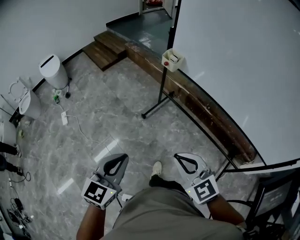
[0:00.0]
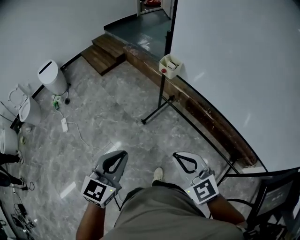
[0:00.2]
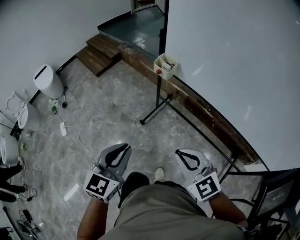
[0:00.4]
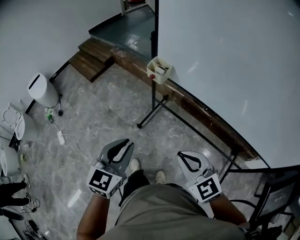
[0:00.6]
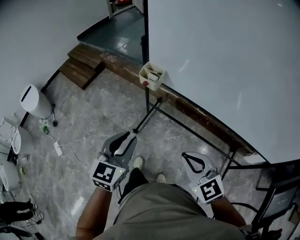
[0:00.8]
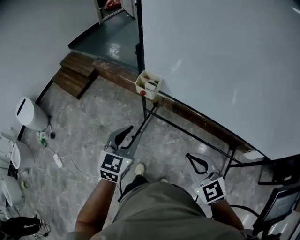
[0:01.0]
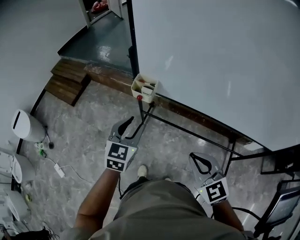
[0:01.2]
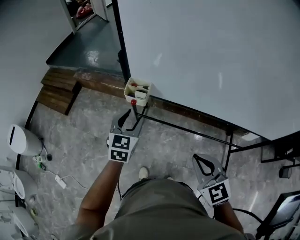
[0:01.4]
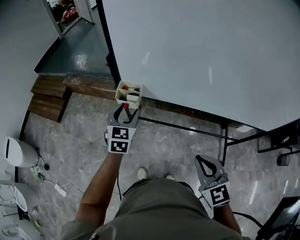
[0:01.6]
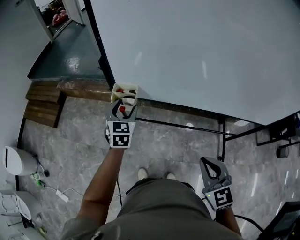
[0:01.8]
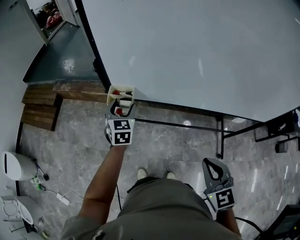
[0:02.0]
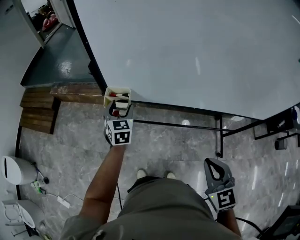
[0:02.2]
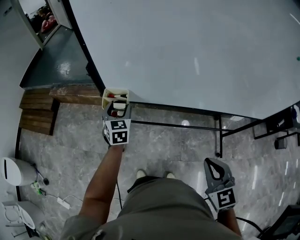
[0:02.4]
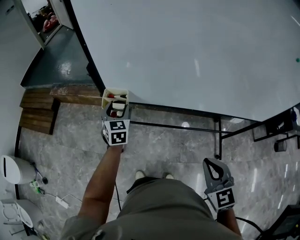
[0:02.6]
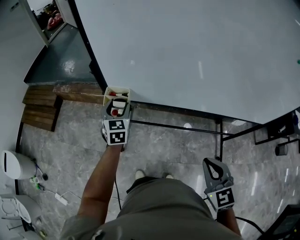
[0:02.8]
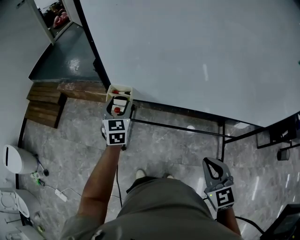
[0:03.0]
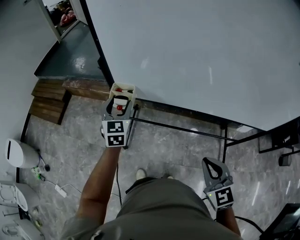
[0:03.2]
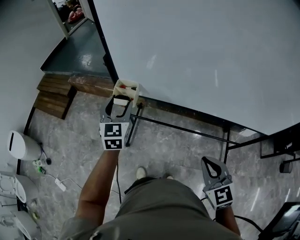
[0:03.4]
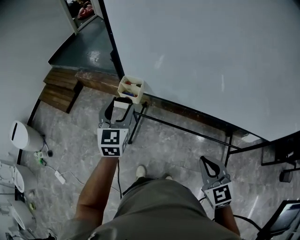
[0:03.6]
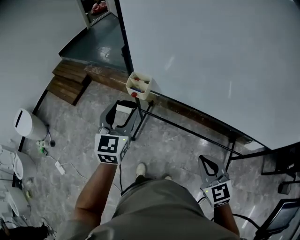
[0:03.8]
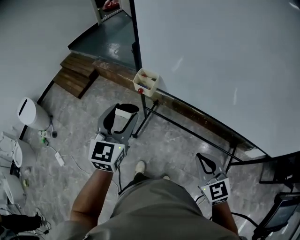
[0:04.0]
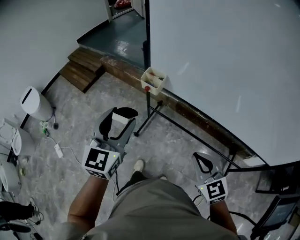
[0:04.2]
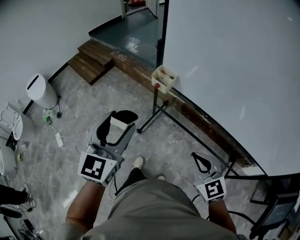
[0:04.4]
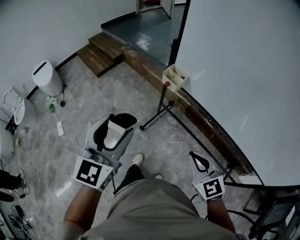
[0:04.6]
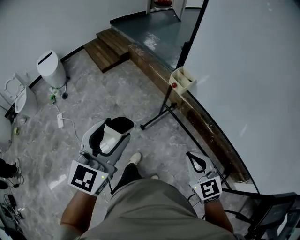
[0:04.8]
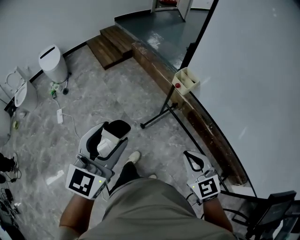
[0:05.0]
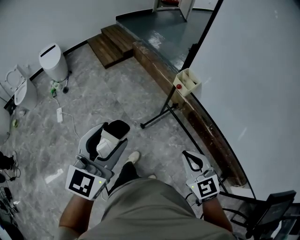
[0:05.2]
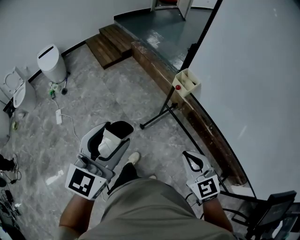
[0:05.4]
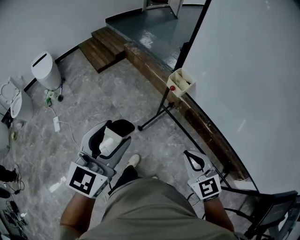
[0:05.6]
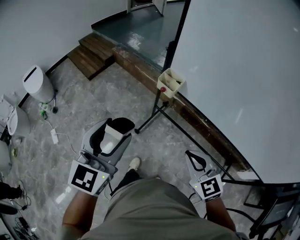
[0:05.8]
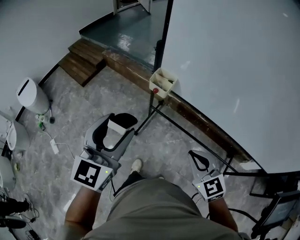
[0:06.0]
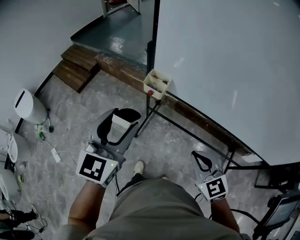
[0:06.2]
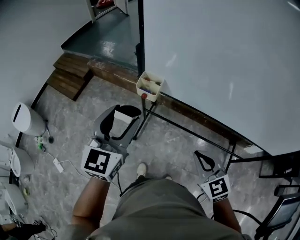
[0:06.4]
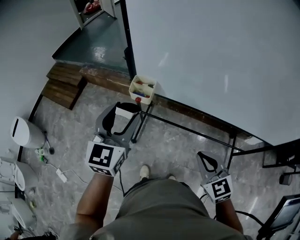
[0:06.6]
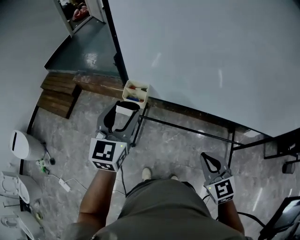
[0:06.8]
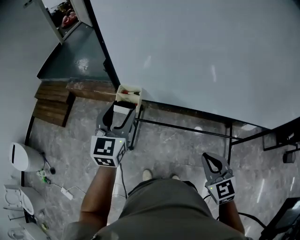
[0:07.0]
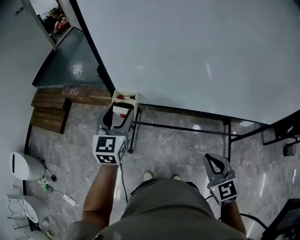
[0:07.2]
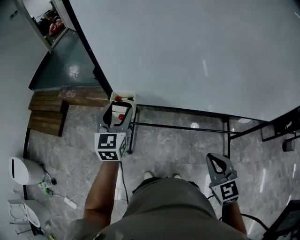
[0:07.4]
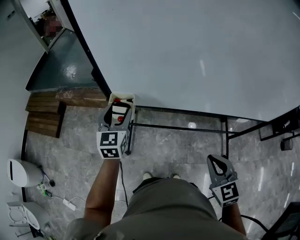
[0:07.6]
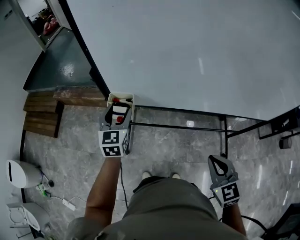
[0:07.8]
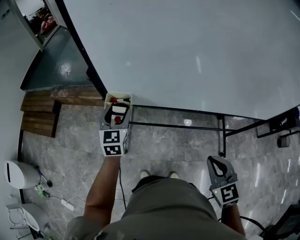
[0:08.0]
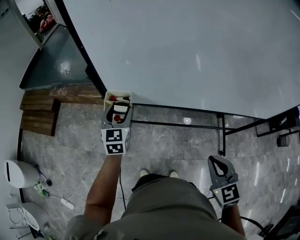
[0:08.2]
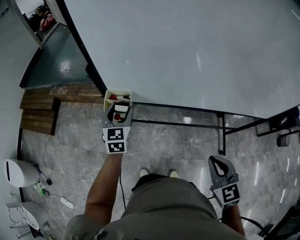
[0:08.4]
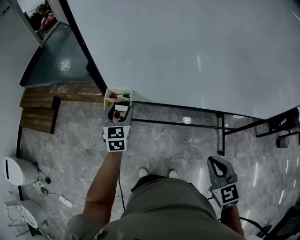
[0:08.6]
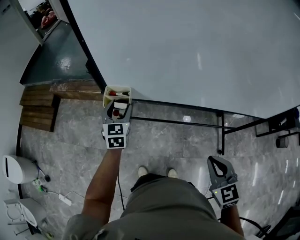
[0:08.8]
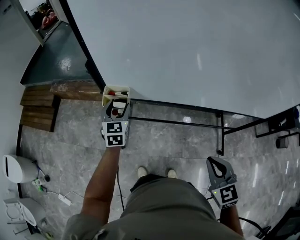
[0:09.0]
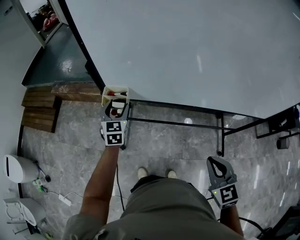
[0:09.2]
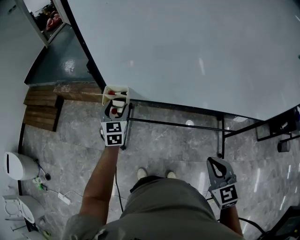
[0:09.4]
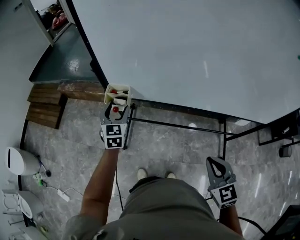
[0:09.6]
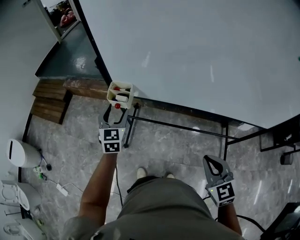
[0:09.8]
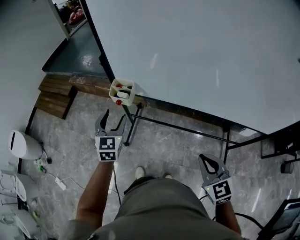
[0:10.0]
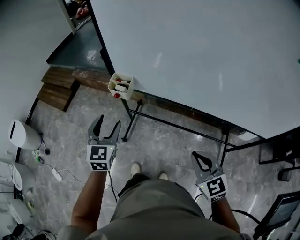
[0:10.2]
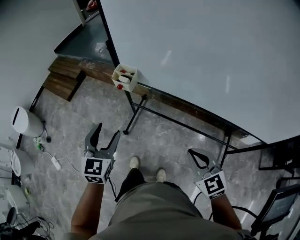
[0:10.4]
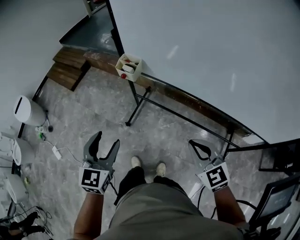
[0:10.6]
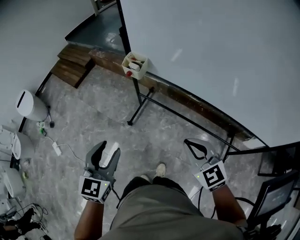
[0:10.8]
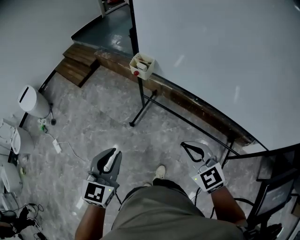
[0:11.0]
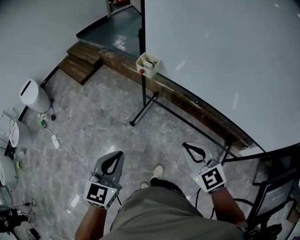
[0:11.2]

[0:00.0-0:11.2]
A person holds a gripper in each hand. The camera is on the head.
0:00.0 to 0:01.6: The right gripper changes place by approximately 25 cm, and rotates approximately 50 degrees, while the left gripper ends up about 60 cm from where it was, rotates approximately 20 degrees, and opens up.
0:01.6 to 0:03.2: The right gripper shifts approximately 5 cm to the right, while the left gripper goes downward and returns, some 5 cm each way.
0:03.2 to 0:04.8: The left gripper ends up approximately 40 cm from where it was, and changes its angle by roughly 20 degrees; the right gripper changes place by about 15 cm, and swivels about 40 degrees.
0:04.8 to 0:06.4: The right gripper shifts by about 10 cm, and changes its angle by approximately 20 degrees. The left gripper ends up some 25 cm from where it was, and changes its angle by roughly 20 degrees.
0:06.4 to 0:08.0: The left gripper shifts approximately 25 cm forward and downward; the right gripper moves to the right, some 10 cm, and rotates roughly 30 degrees.
0:08.0 to 0:09.6: The right gripper changes place by approximately 5 cm.
0:09.6 to 0:11.2: The right gripper shifts some 10 cm backward and to the left, and rotates approximately 40 degrees. Meanwhile the left gripper goes approximately 50 cm backward, and closes.

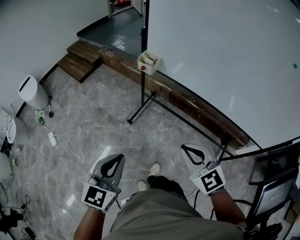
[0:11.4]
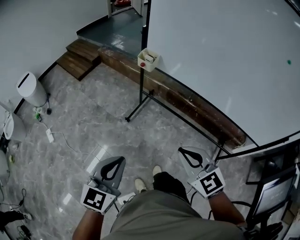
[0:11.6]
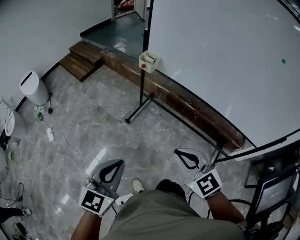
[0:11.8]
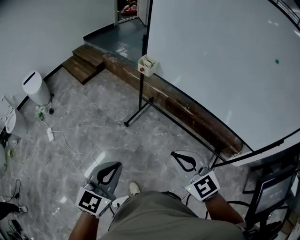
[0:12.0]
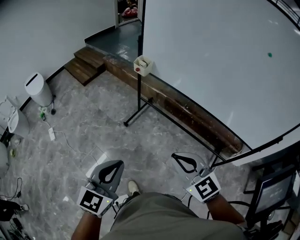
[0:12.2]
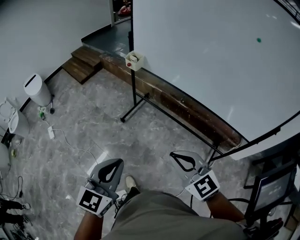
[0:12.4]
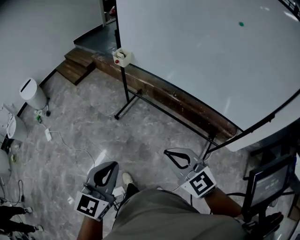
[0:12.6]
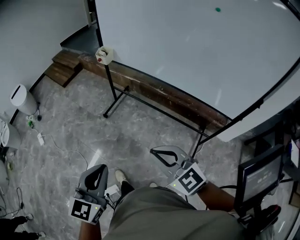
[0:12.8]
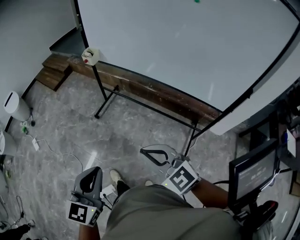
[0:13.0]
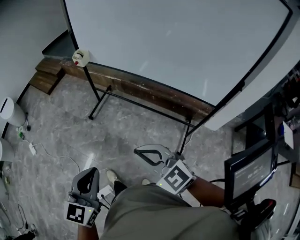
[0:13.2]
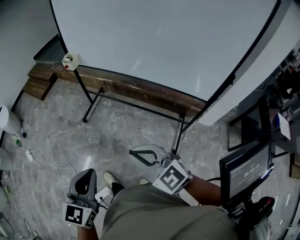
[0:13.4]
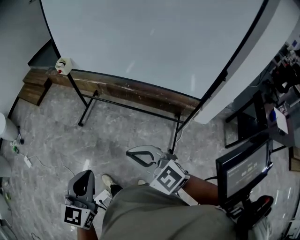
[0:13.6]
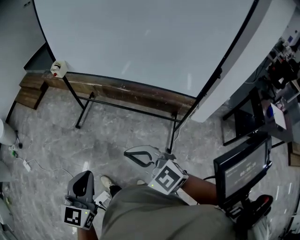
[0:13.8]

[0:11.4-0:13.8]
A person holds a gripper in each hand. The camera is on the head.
0:11.4 to 0:12.6: Both grippers travel together backward and to the right, some 25 cm.
0:12.6 to 0:13.8: The grippers both shift to the right and backward by approximately 15 cm.

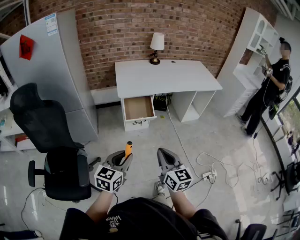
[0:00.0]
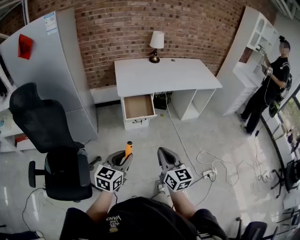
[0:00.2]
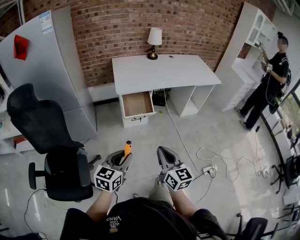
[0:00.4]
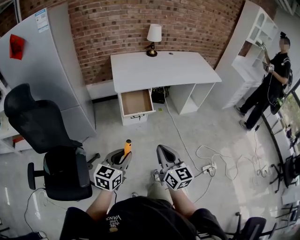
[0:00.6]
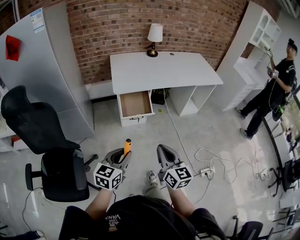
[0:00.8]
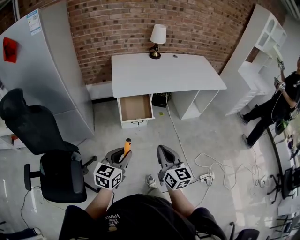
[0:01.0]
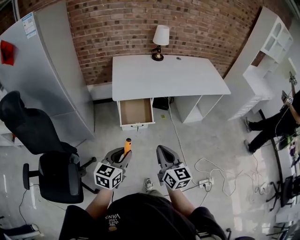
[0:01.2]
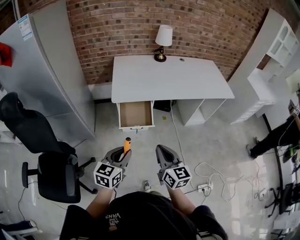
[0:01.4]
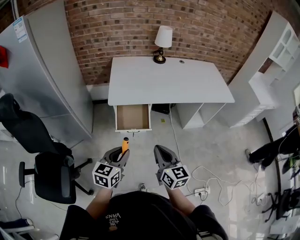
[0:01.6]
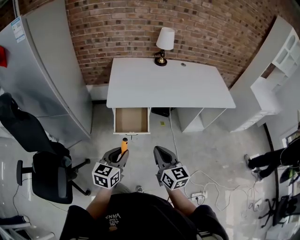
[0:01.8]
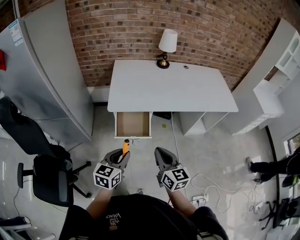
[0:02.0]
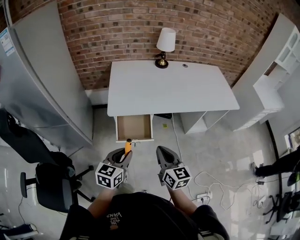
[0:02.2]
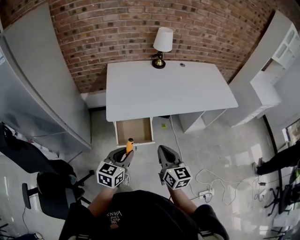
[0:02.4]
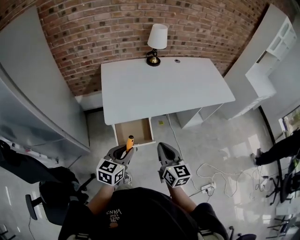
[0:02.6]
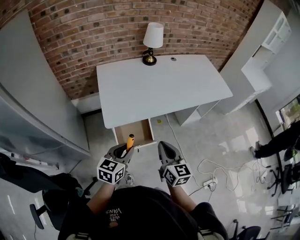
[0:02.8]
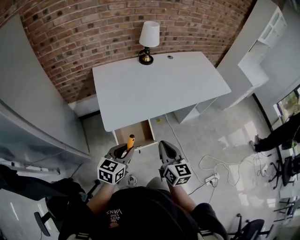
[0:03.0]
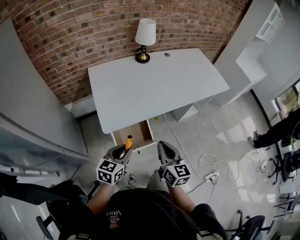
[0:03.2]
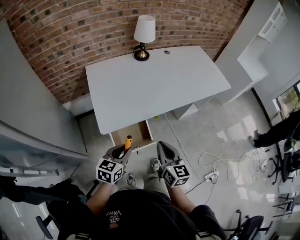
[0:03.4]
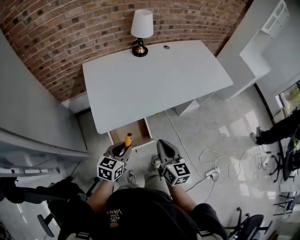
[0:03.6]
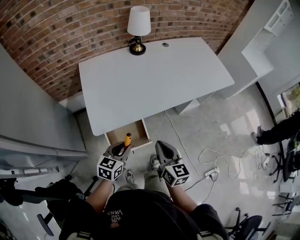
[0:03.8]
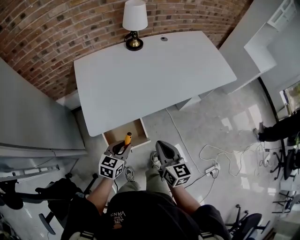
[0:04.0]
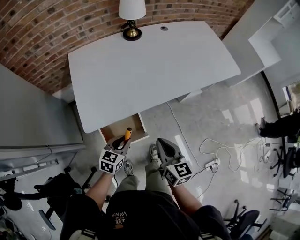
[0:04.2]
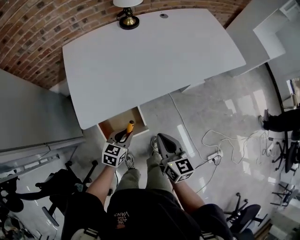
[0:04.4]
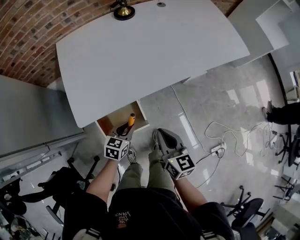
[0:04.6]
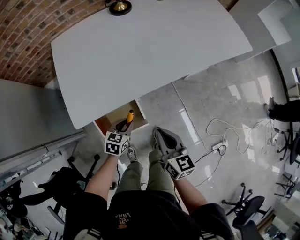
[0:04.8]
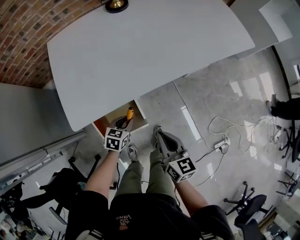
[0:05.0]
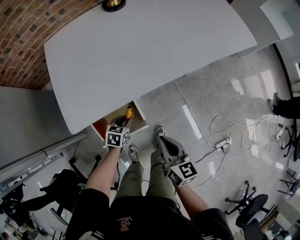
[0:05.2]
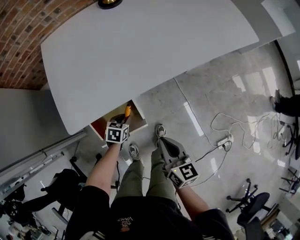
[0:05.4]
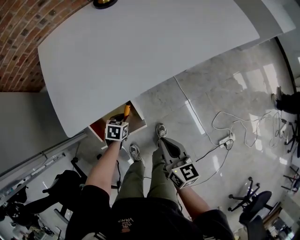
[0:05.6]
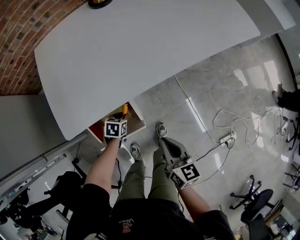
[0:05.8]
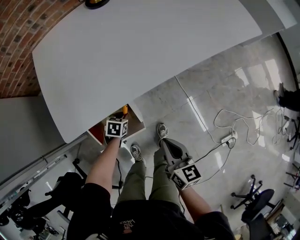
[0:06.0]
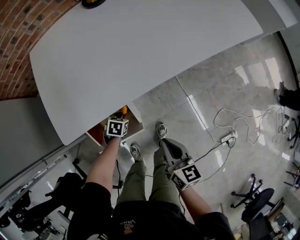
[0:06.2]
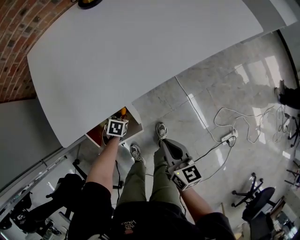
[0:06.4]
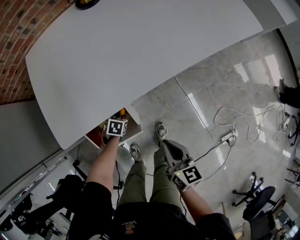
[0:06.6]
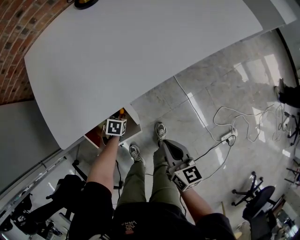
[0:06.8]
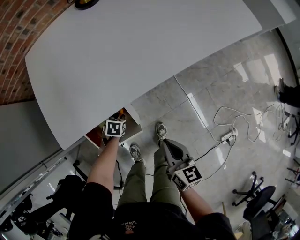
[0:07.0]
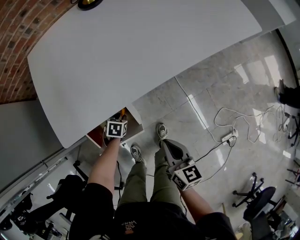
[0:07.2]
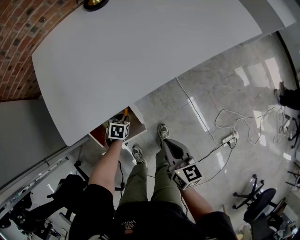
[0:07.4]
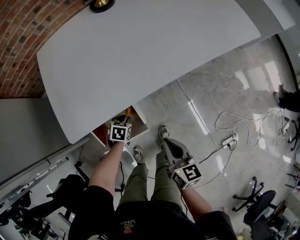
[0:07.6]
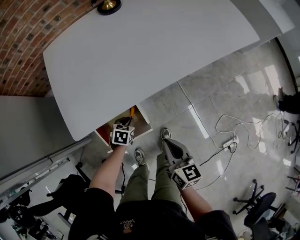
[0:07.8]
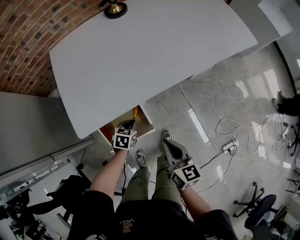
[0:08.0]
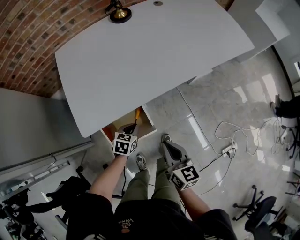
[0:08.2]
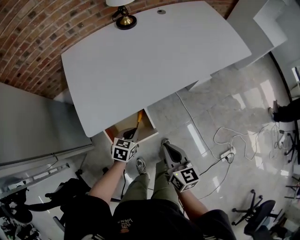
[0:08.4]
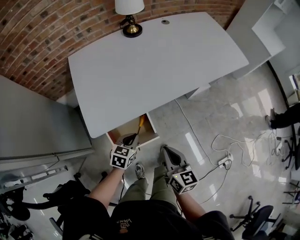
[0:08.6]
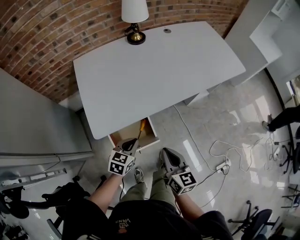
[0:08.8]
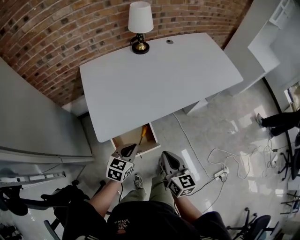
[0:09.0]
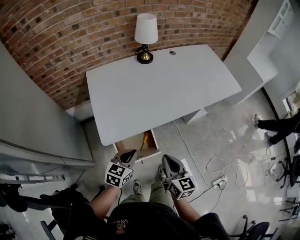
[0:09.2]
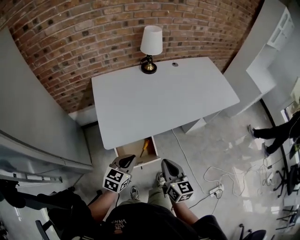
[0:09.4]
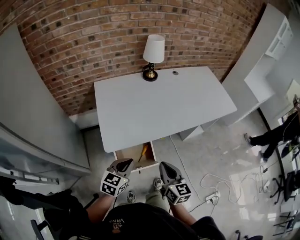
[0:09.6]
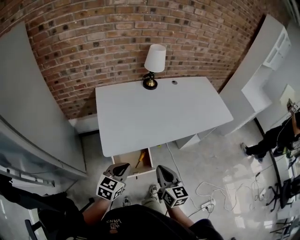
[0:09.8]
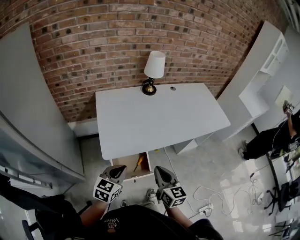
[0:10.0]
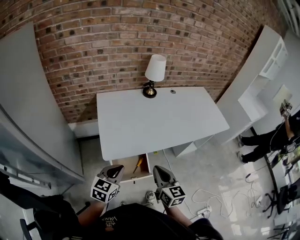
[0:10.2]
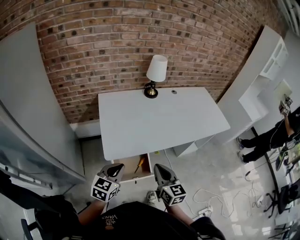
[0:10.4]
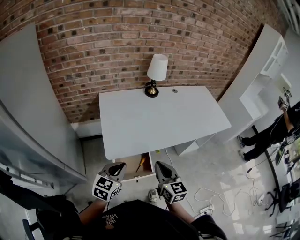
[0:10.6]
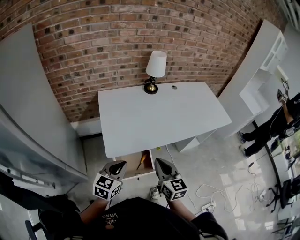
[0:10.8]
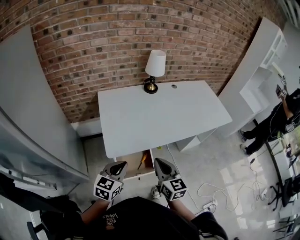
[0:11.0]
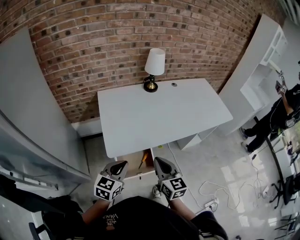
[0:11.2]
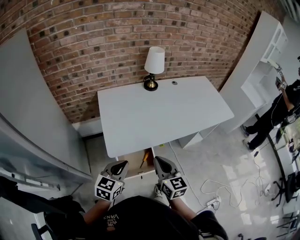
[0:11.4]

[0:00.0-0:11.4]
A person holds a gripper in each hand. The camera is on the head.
0:00.0 to 0:01.4: The grippers both shift forward by approximately 20 cm.
0:01.4 to 0:02.8: Both grippers move forward, about 25 cm.
0:02.8 to 0:04.2: The left gripper goes approximately 20 cm downward and forward. The right gripper heads forward, downward and to the right, covering roughly 15 cm.
0:04.2 to 0:05.6: The left gripper moves downward, approximately 25 cm, and changes its angle by about 30 degrees. Meanwhile the right gripper moves downward, some 15 cm.
0:05.6 to 0:07.2: The left gripper goes about 5 cm downward.
0:07.2 to 0:08.6: The left gripper moves upward, about 25 cm, and angles its fingers upward, by approximately 30 degrees, while the right gripper travels upward by approximately 10 cm.
0:08.6 to 0:10.0: The left gripper shifts approximately 25 cm upward and backward, and turns by about 20 degrees, while the right gripper travels upward and to the left by some 15 cm.
0:10.0 to 0:11.4: The grippers move only a little.
